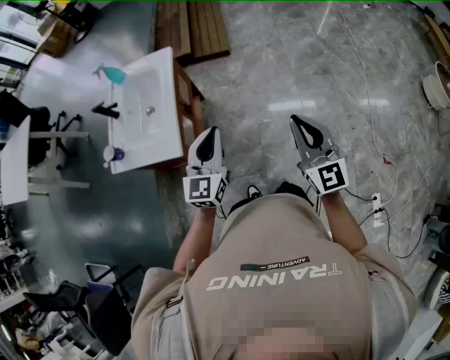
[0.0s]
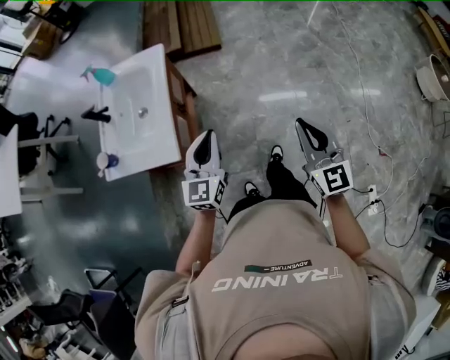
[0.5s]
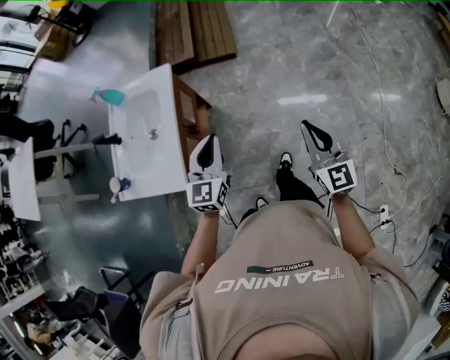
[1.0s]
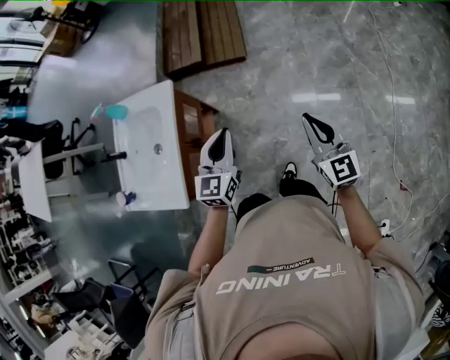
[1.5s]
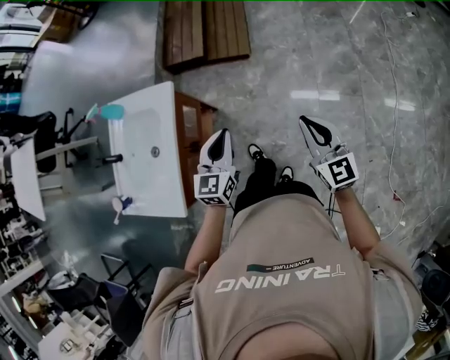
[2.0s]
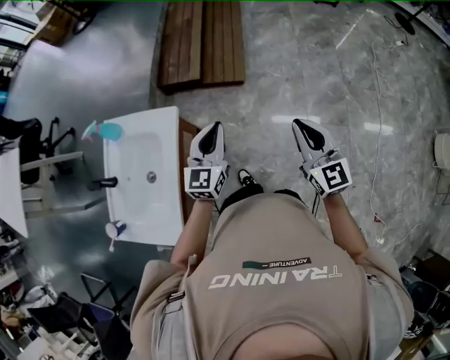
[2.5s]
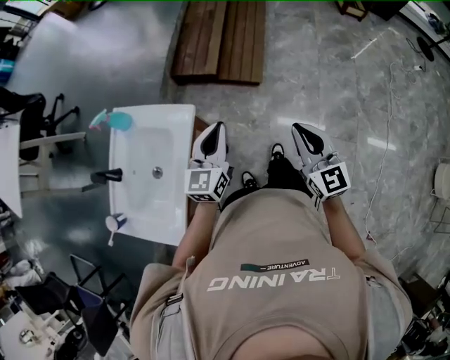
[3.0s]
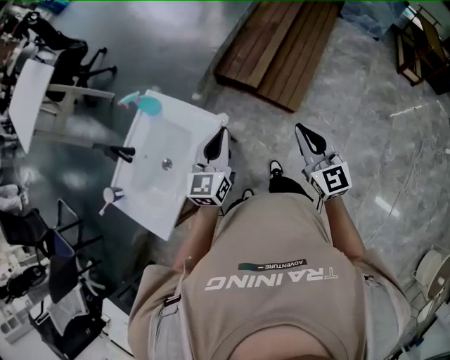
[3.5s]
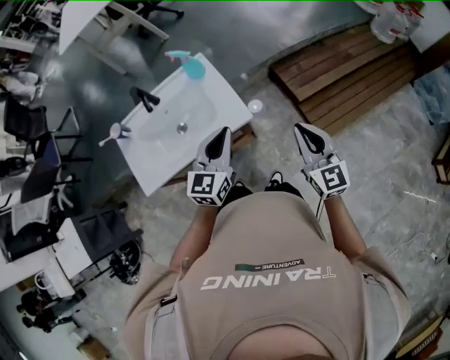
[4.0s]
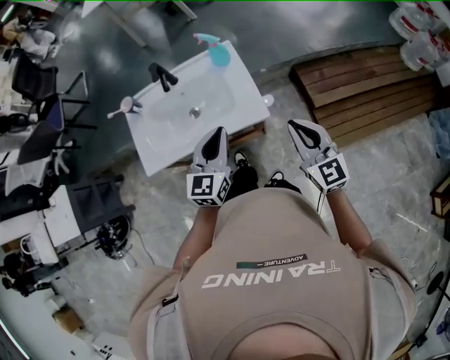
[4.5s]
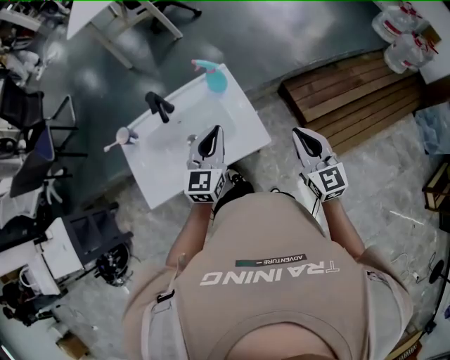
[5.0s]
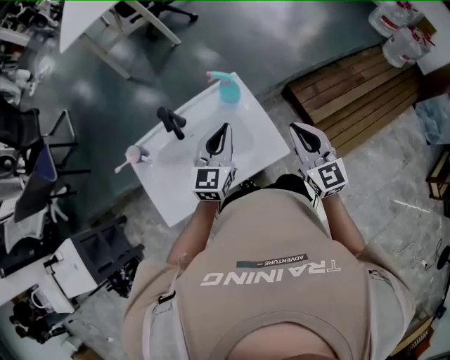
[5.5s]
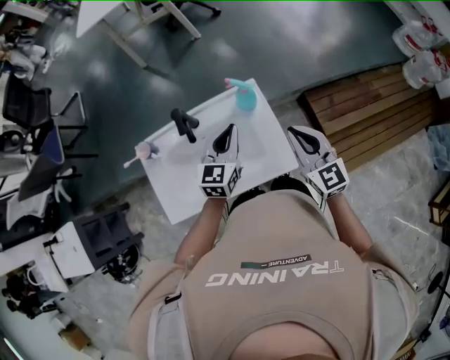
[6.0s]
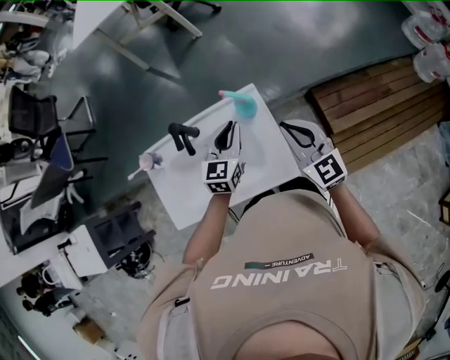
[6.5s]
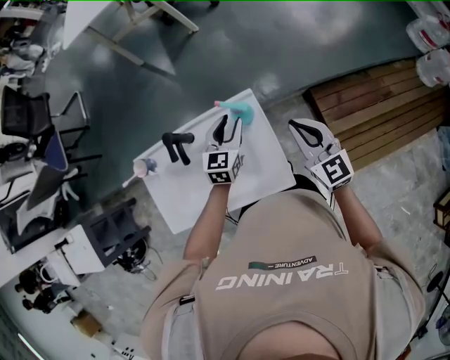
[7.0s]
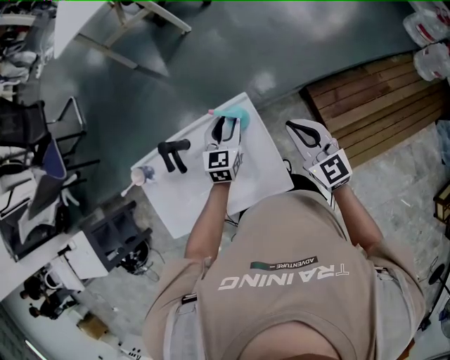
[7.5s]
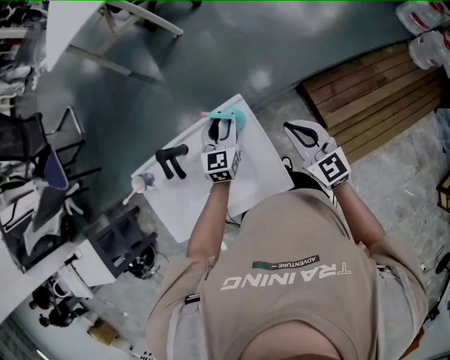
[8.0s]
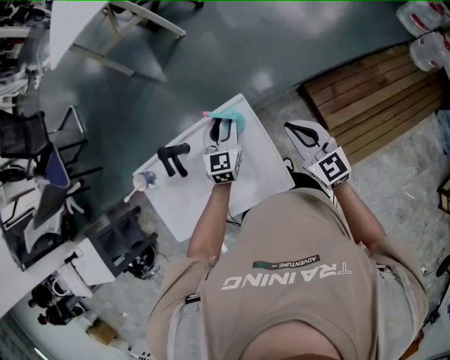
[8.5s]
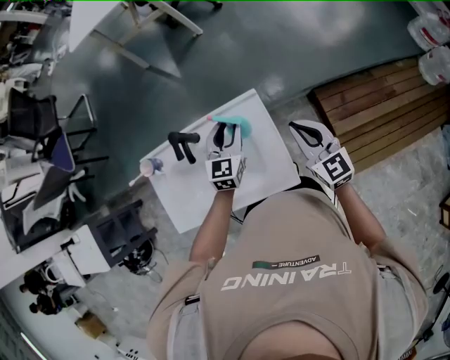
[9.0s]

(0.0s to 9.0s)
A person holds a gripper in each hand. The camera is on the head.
0.0s - 2.0s: The two grippers go approximately 30 cm forward.
2.0s - 4.5s: The right gripper ends up some 40 cm from where it was, and turns by some 70 degrees. The left gripper changes place by some 25 cm, and changes its angle by approximately 70 degrees.
4.5s - 7.0s: The grippers both shift forward by roughly 30 cm. The left gripper opens.
7.0s - 9.0s: There are only small adjustments of the grippers.

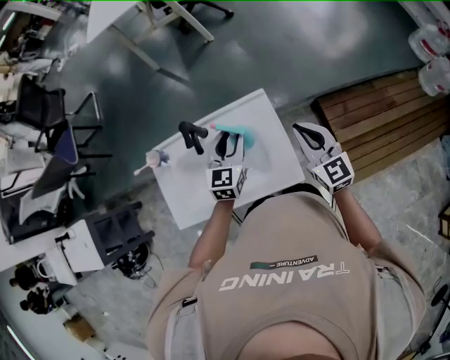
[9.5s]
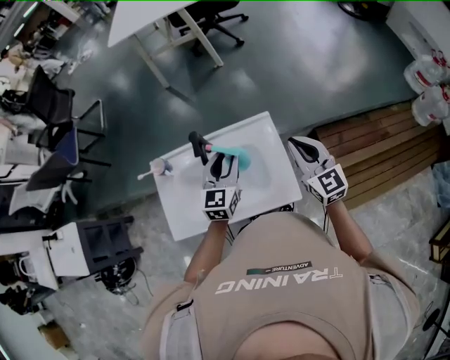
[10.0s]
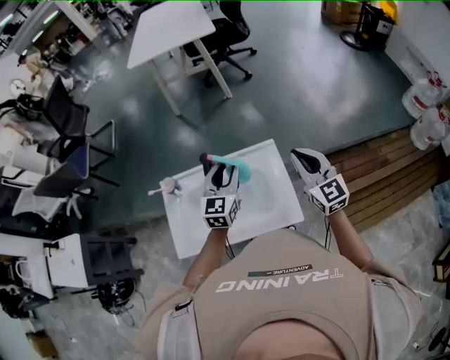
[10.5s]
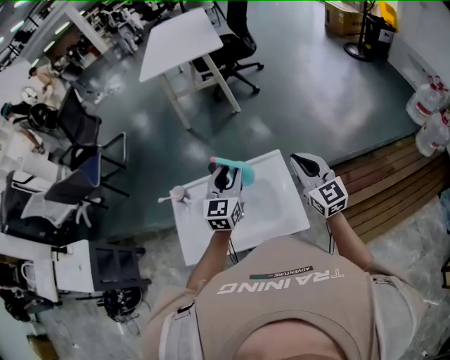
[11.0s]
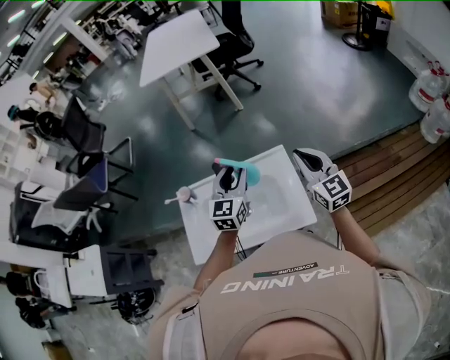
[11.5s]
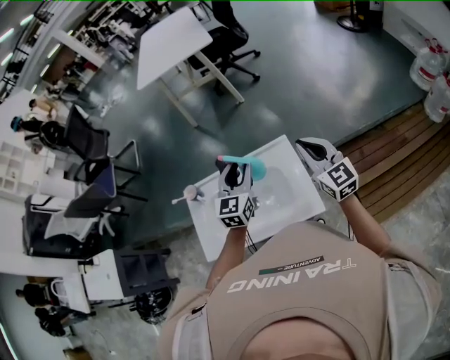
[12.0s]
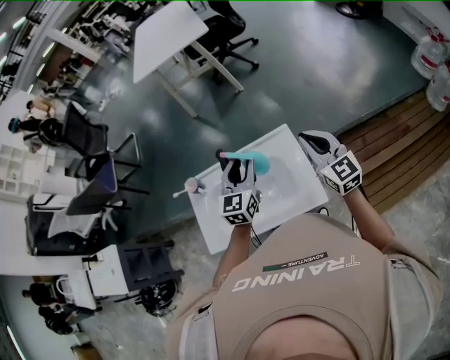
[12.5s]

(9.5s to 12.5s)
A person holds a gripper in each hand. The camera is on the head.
9.5s - 11.0s: The left gripper is displaced upward and to the left by roughly 10 cm. Meanwhile the right gripper is displaced upward by about 10 cm.
11.0s - 12.5s: The grippers stay close to where they were, moving slightly.

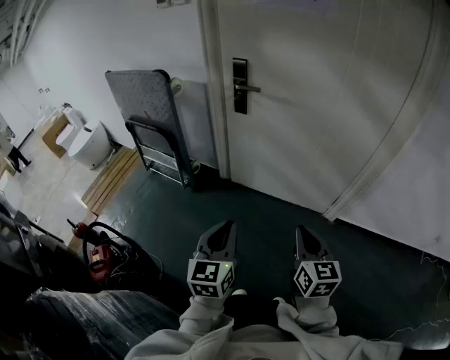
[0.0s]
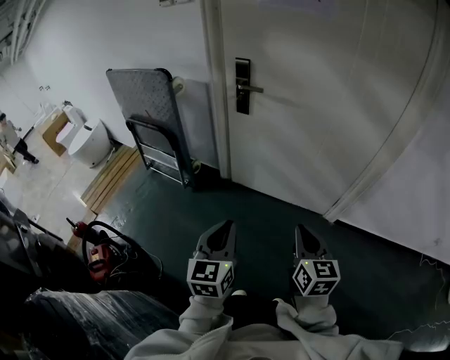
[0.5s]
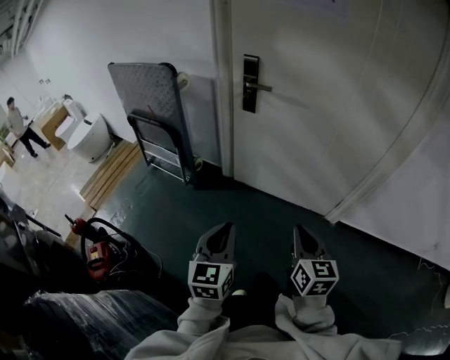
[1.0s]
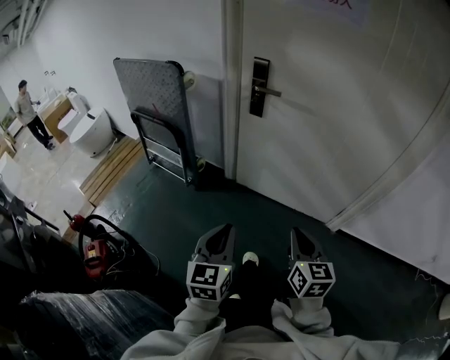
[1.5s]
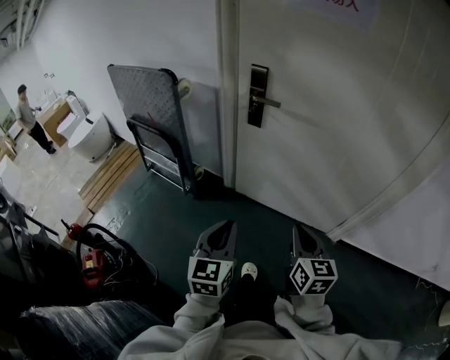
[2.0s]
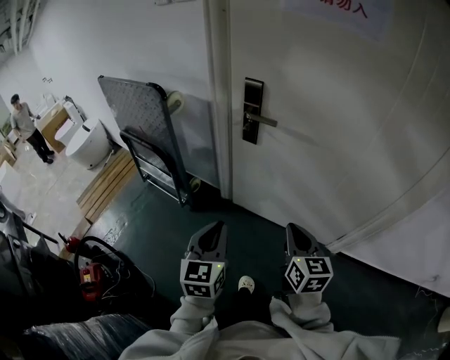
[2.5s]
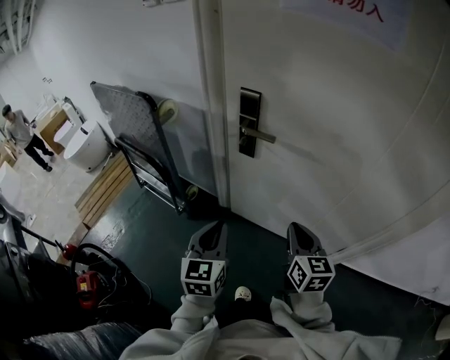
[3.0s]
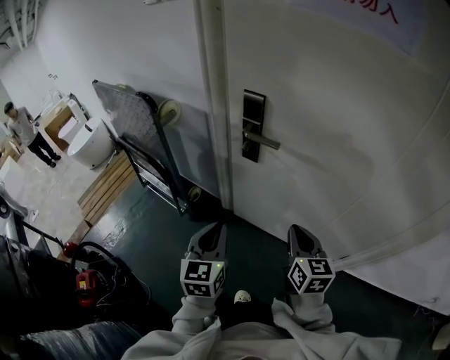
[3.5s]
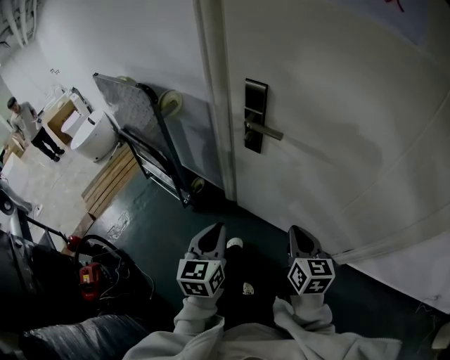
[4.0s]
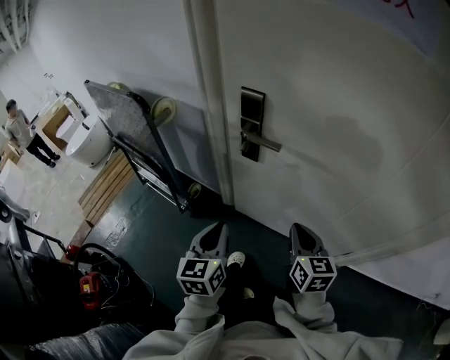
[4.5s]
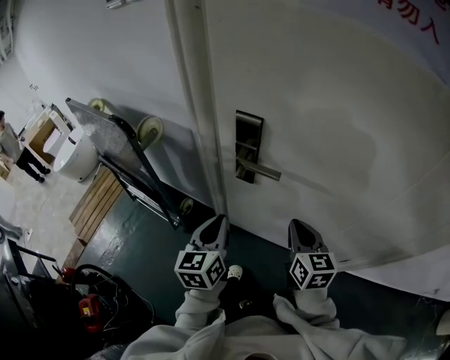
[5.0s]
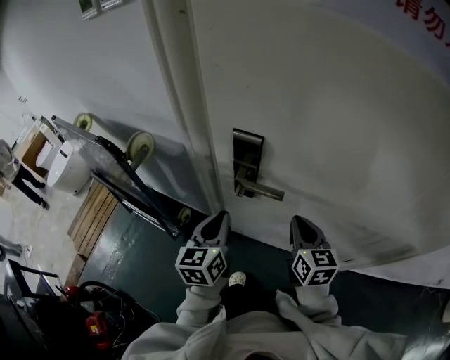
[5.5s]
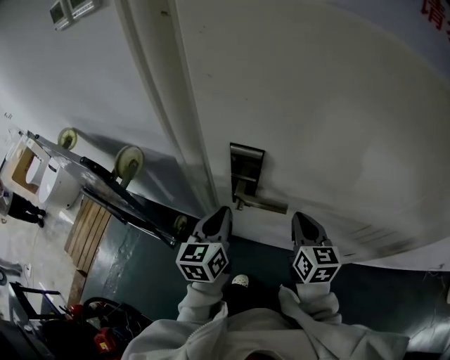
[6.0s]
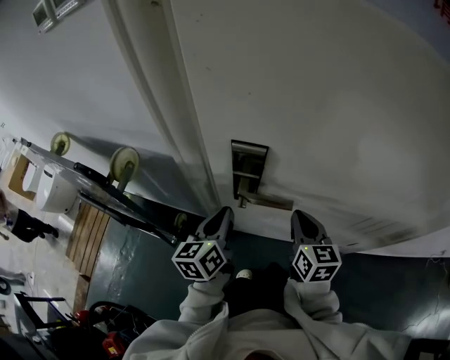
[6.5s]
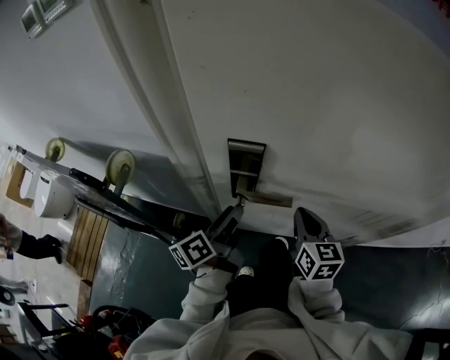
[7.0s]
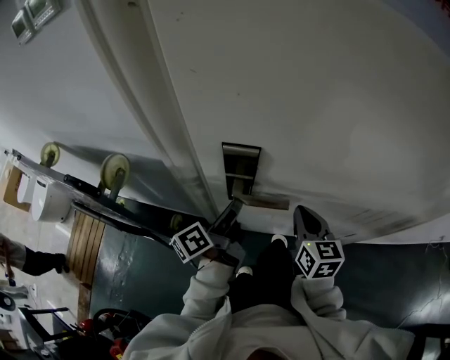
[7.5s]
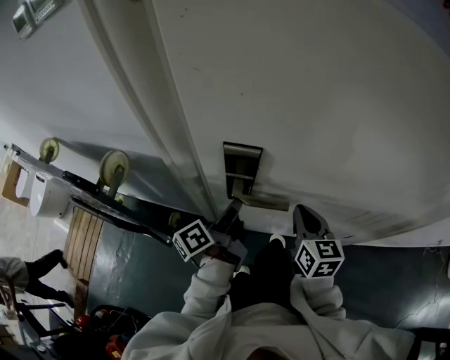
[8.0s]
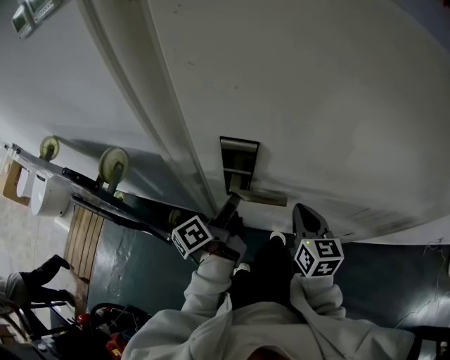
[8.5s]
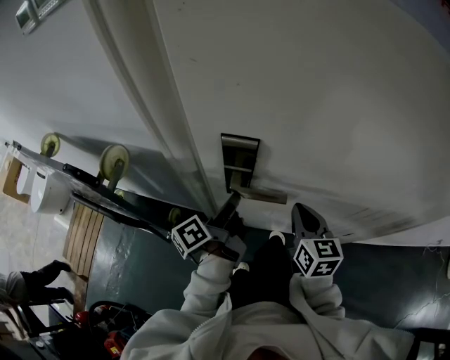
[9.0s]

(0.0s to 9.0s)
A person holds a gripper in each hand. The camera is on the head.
0.0s - 2.0s: The grippers both shift forward by roughly 15 cm.
2.0s - 4.5s: Both grippers travel together forward, approximately 25 cm.
4.5s - 7.0s: The two grippers go some 20 cm forward. The left gripper rolls counterclockwise, seen from behind, by some 40 degrees, and opens.
7.0s - 9.0s: The left gripper closes.

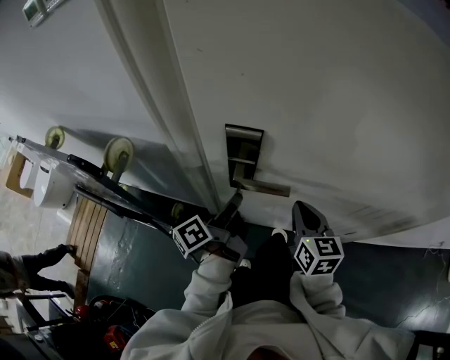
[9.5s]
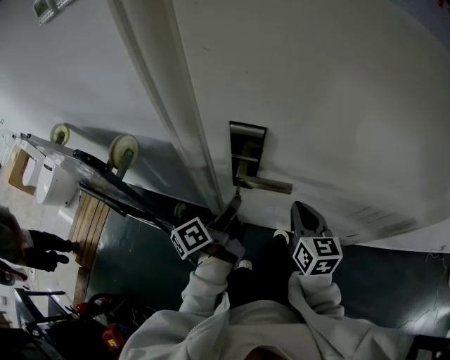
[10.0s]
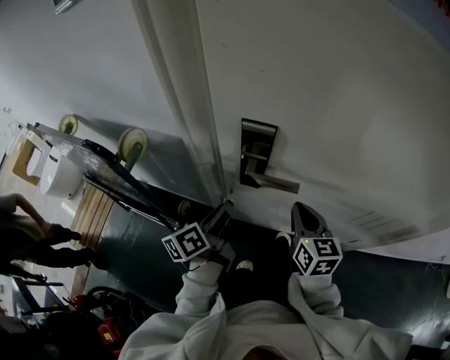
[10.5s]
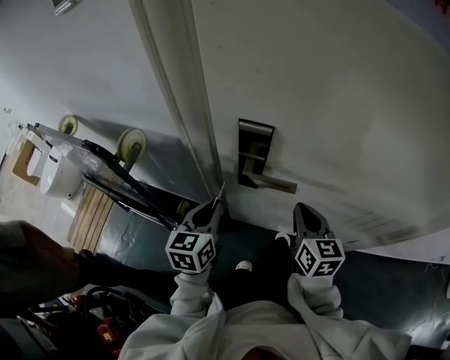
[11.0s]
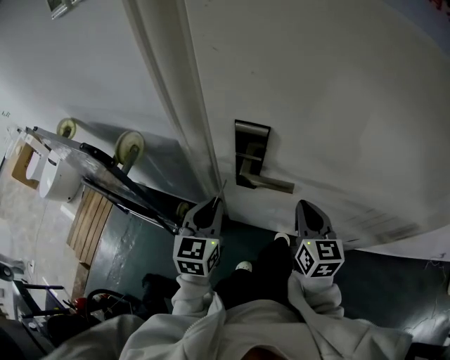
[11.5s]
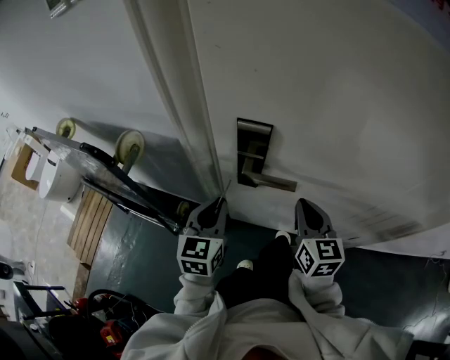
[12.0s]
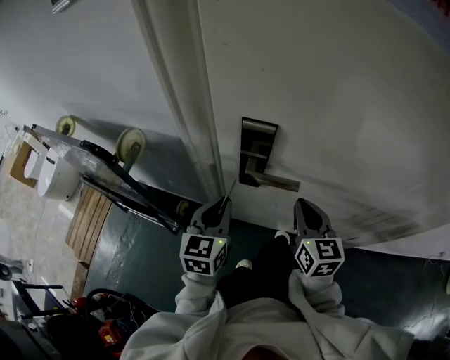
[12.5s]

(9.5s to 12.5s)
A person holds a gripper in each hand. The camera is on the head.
9.5s - 11.0s: The left gripper goes about 5 cm to the left, and rolls clockwise, seen from behind, by approximately 70 degrees.
11.0s - 12.5s: The grippers make only small movements.

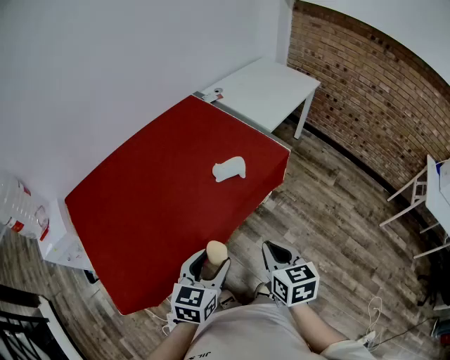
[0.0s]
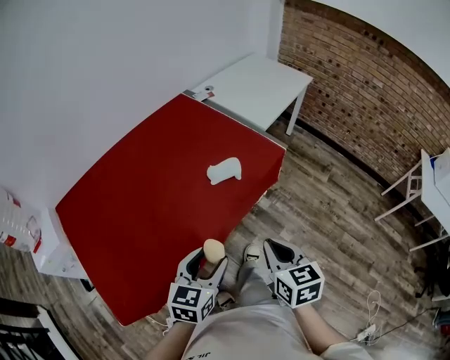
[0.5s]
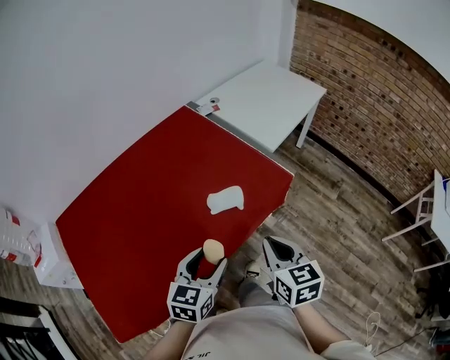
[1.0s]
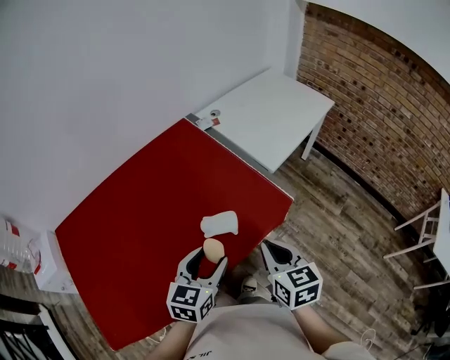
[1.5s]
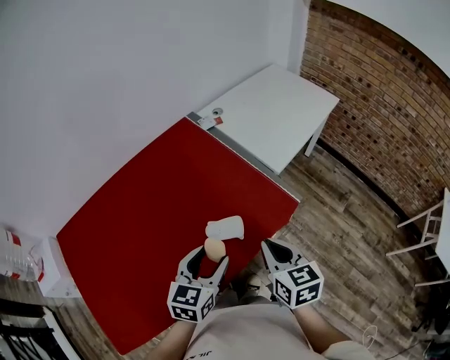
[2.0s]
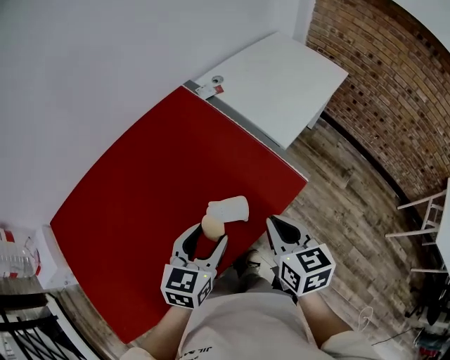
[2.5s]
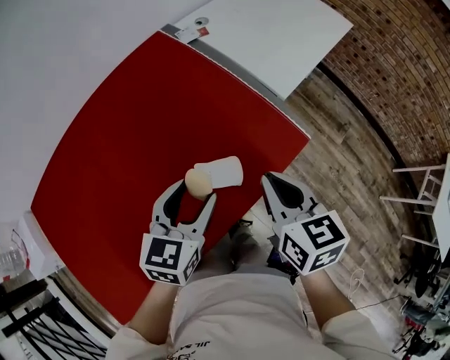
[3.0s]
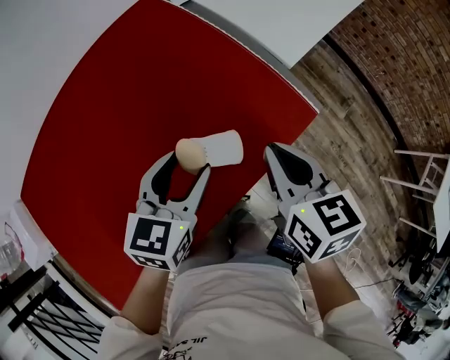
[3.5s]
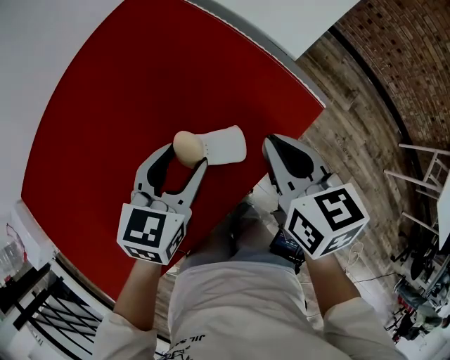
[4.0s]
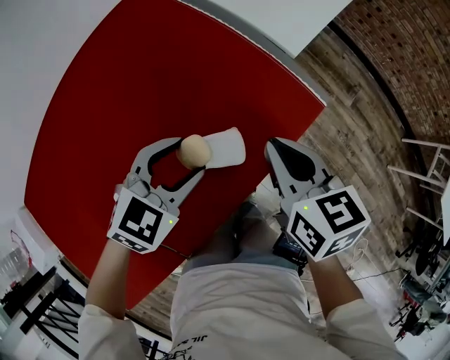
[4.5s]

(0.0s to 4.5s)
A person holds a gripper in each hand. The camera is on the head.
0.0s - 2.0s: Both grippers move forward, approximately 35 cm.
2.0s - 4.5s: Both grippers move forward and downward, approximately 20 cm. The left gripper rotates some 40 degrees.
